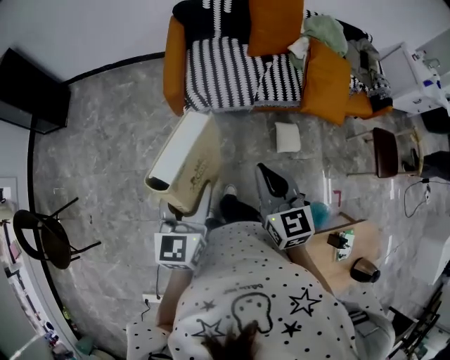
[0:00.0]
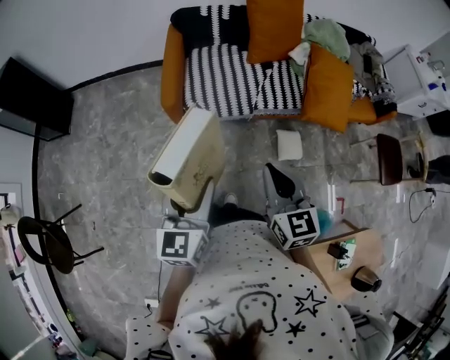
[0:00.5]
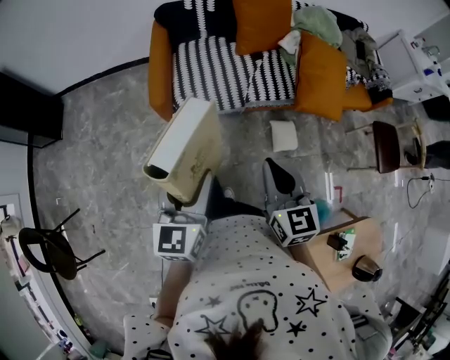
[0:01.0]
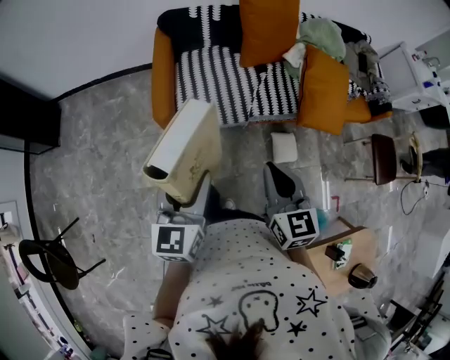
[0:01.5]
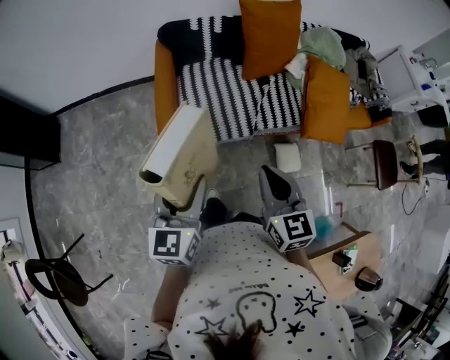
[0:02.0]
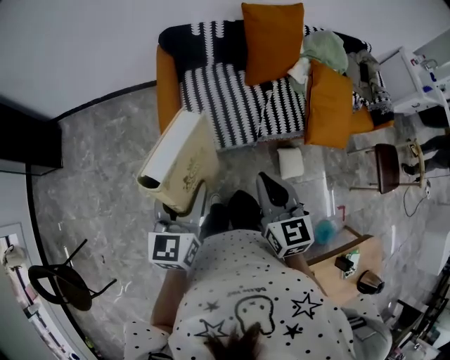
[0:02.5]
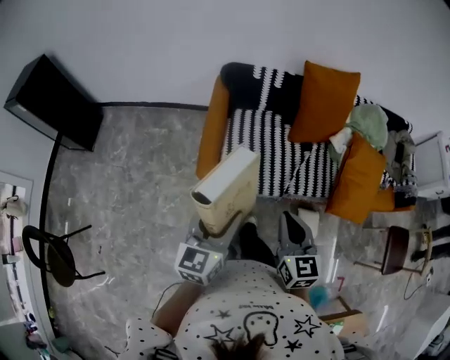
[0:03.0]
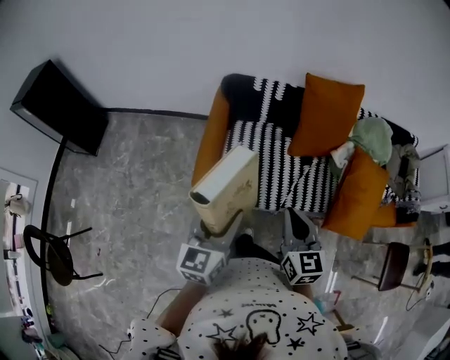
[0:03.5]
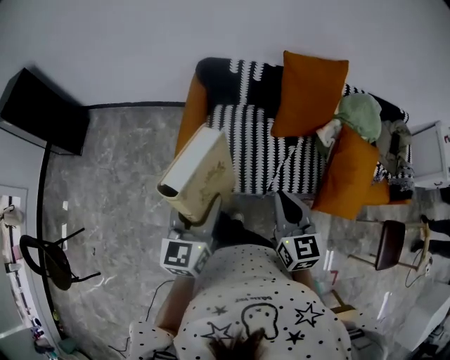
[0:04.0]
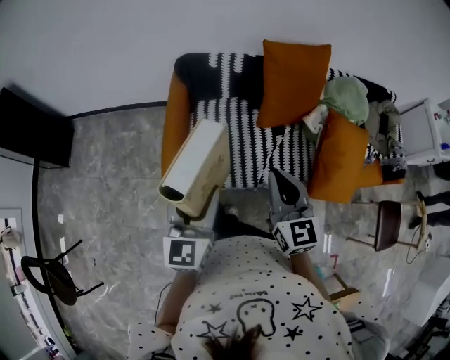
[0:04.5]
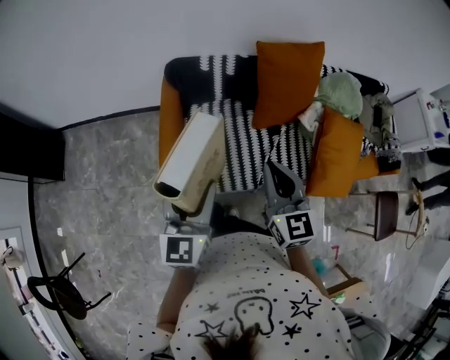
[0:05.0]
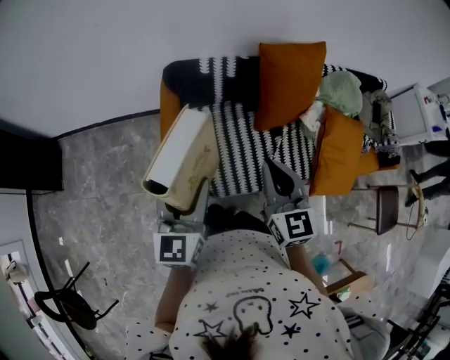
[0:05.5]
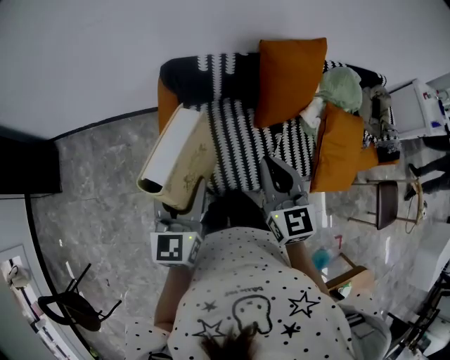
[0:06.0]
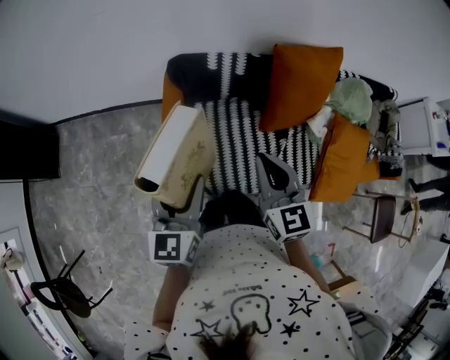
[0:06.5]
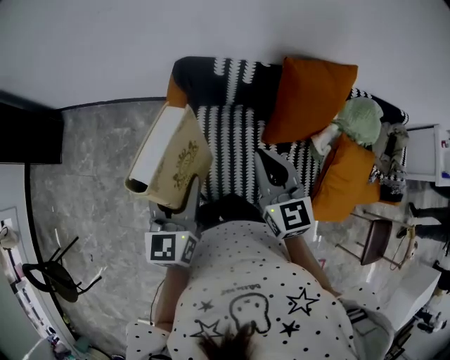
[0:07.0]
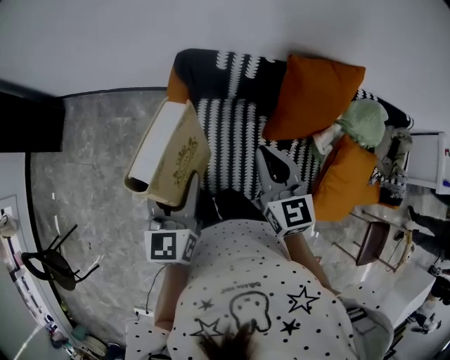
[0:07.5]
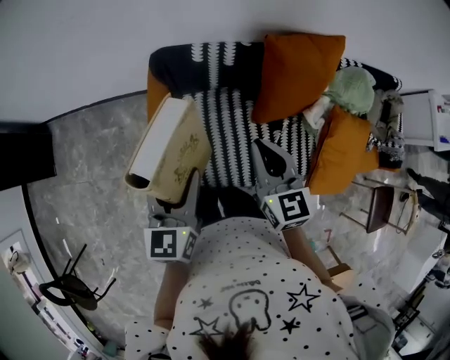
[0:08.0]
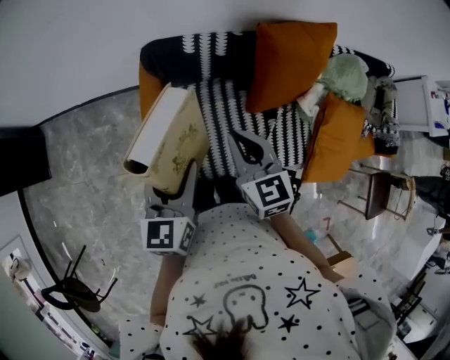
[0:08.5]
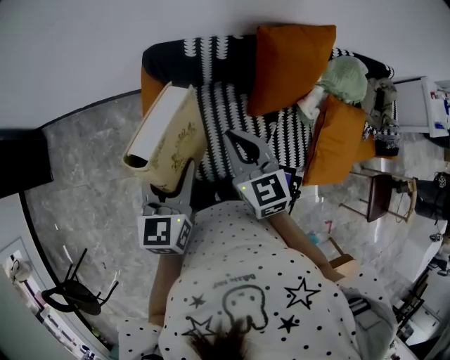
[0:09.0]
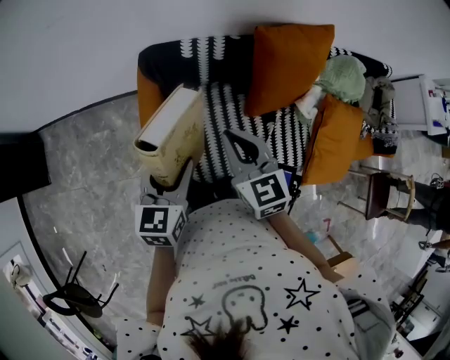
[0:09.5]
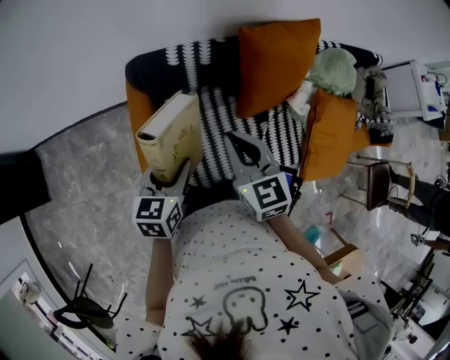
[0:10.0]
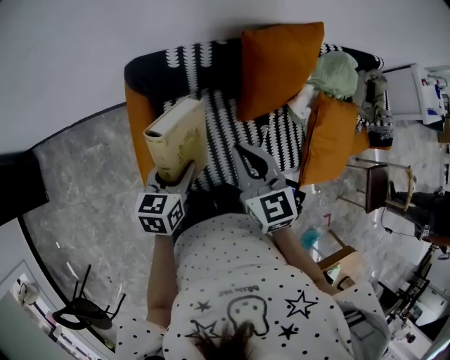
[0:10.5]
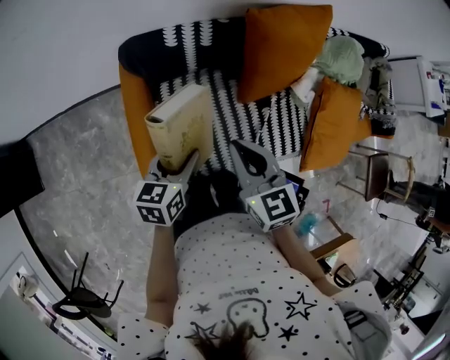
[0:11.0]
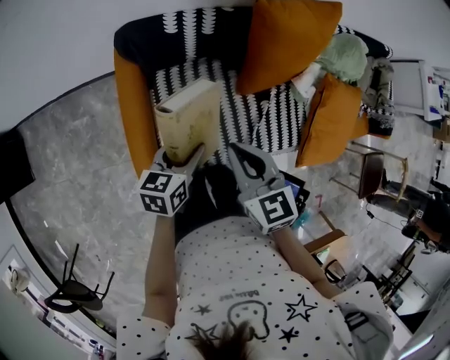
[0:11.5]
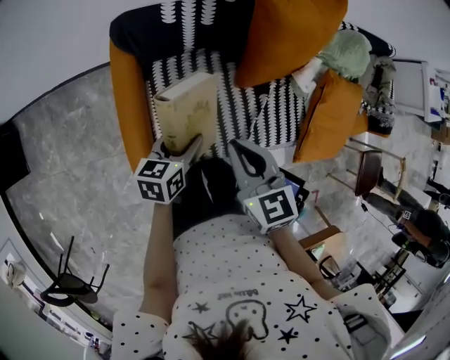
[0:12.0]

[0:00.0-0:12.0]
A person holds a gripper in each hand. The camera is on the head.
0:00.0 to 0:02.0: Both grippers move forward, some 20 cm.
0:02.0 to 0:04.0: The grippers both shift forward by about 15 cm.
0:04.0 to 0:06.0: The grippers both shift forward and to the left by about 15 cm.
0:06.0 to 0:08.0: The grippers both shift forward by roughly 10 cm.
0:08.0 to 0:10.0: The left gripper is displaced downward by about 10 cm, and rotates some 20 degrees.
0:10.0 to 0:12.0: The right gripper is displaced downward and backward by about 10 cm, while the left gripper travels downward by some 10 cm.

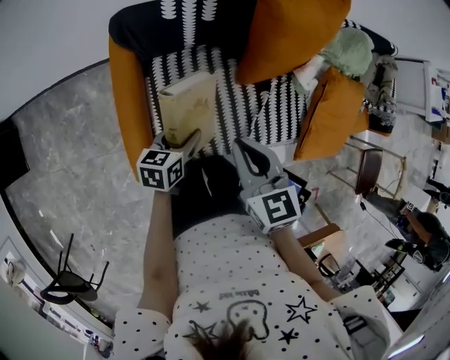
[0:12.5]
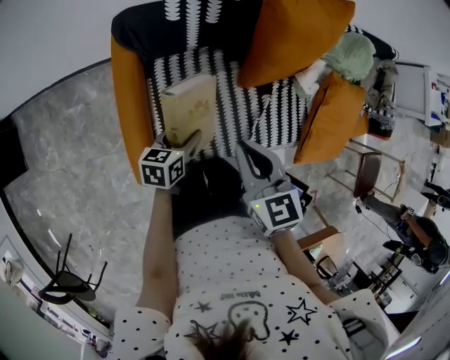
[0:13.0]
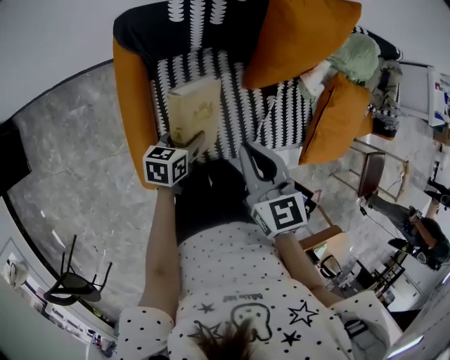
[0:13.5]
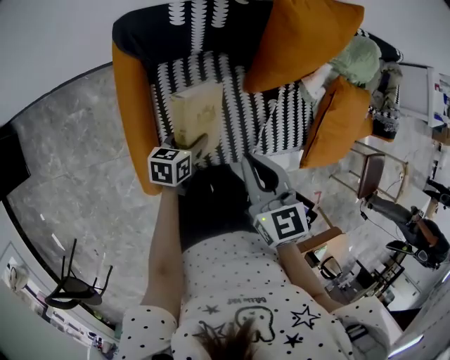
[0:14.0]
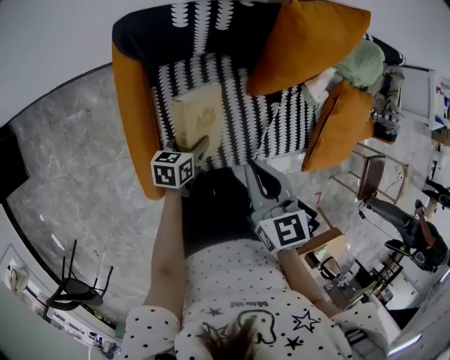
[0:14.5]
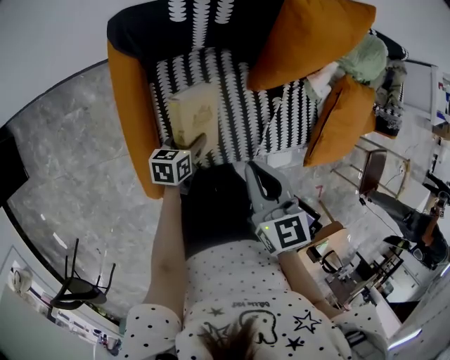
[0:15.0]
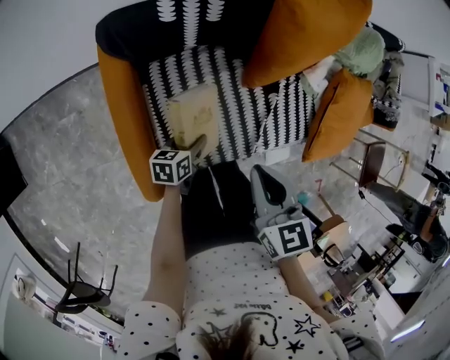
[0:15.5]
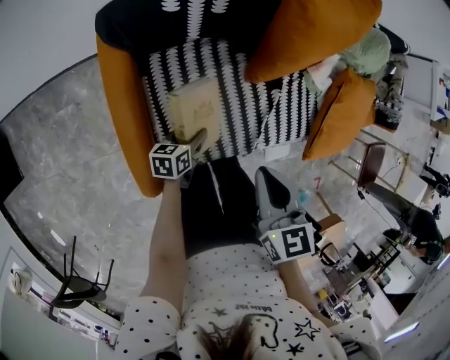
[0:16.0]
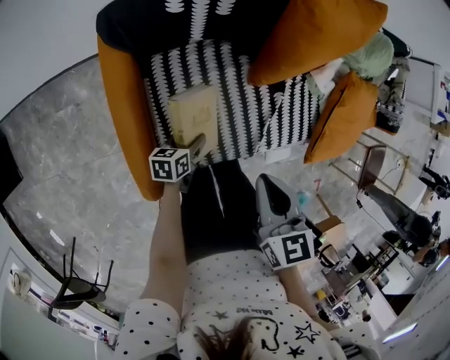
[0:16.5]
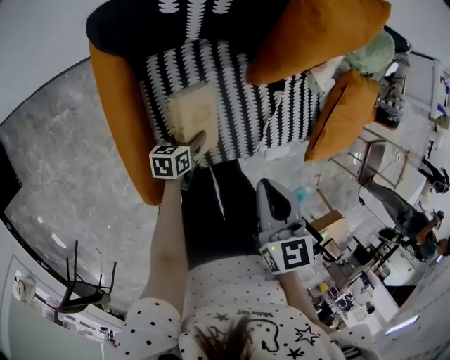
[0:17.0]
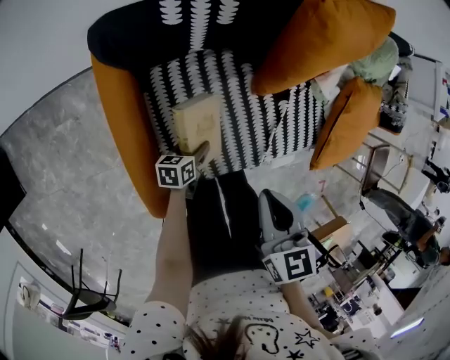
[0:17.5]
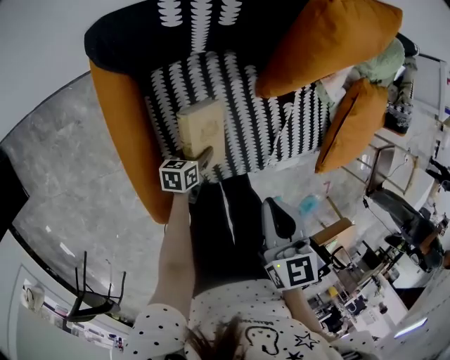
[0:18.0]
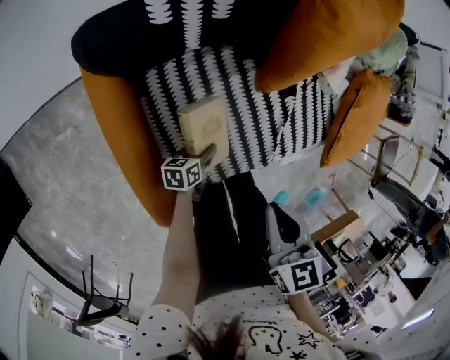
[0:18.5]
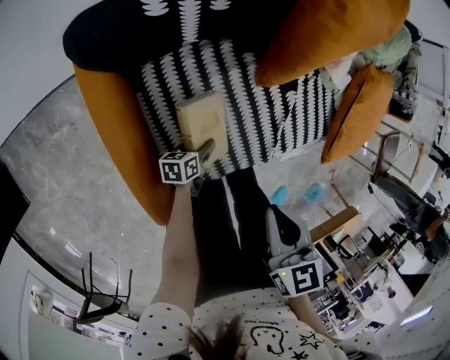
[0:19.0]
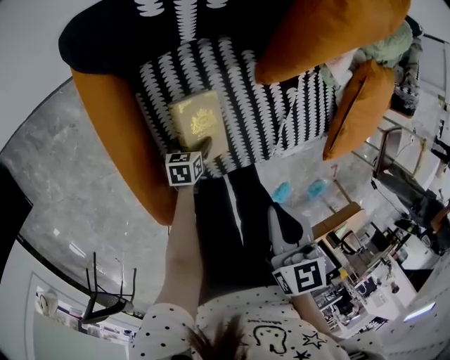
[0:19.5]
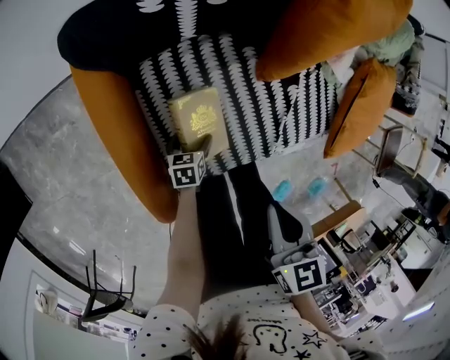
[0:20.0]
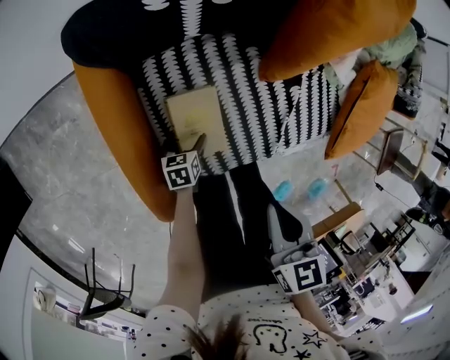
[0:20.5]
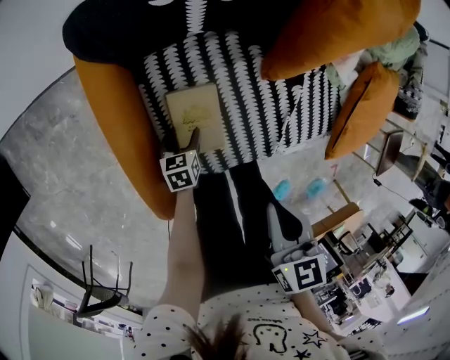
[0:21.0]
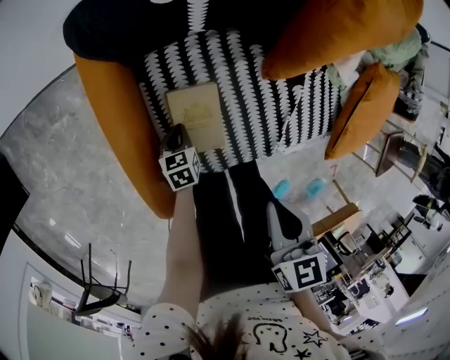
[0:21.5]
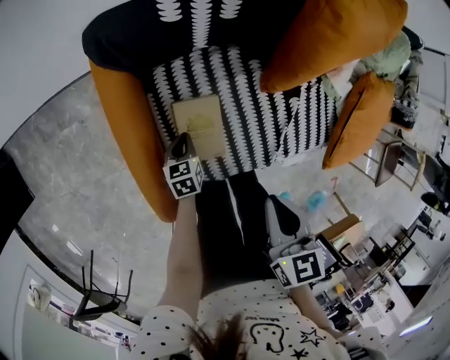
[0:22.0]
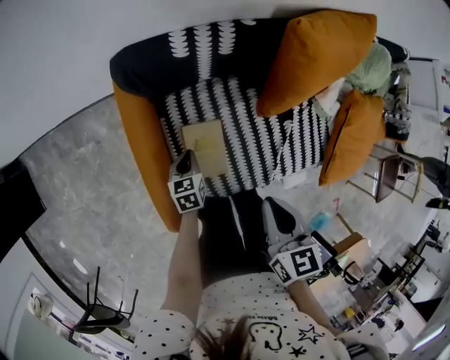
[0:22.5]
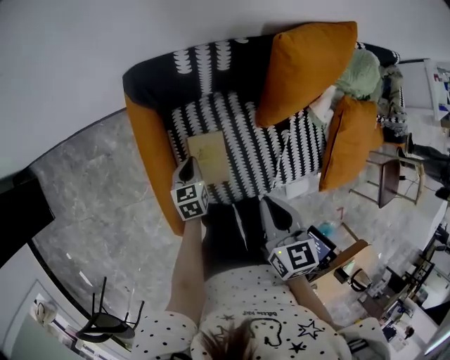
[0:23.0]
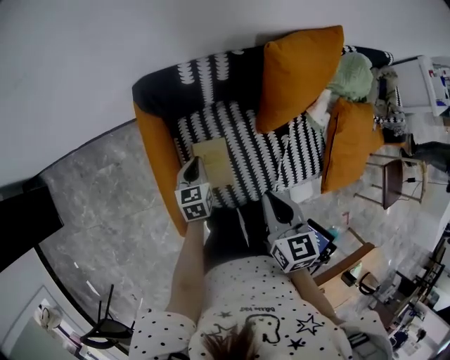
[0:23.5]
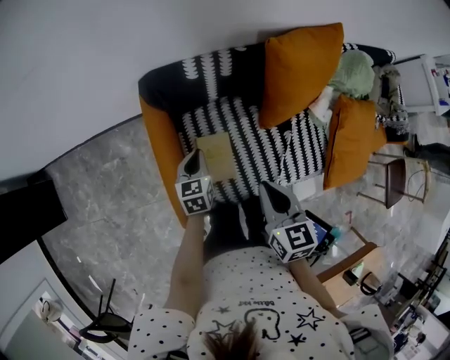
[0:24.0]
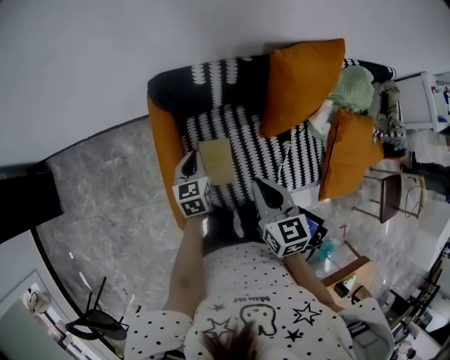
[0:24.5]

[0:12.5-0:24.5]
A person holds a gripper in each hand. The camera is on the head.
0:12.5 to 0:14.5: The left gripper heads downward, covering roughly 10 cm.
0:14.5 to 0:16.5: The left gripper goes about 10 cm downward.
0:16.5 to 0:18.5: The left gripper shifts approximately 10 cm downward.
0:18.5 to 0:20.5: The left gripper travels to the left by roughly 5 cm, swivels some 20 degrees, and opens up.
0:20.5 to 0:22.5: The left gripper shifts some 15 cm upward and forward, and closes its fingers; the right gripper moves about 5 cm.
0:22.5 to 0:24.5: The right gripper shifts approximately 5 cm upward, while the left gripper is displaced upward by some 20 cm.

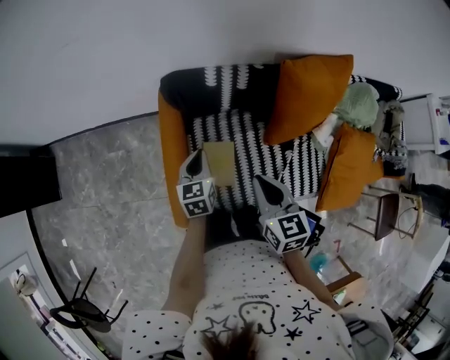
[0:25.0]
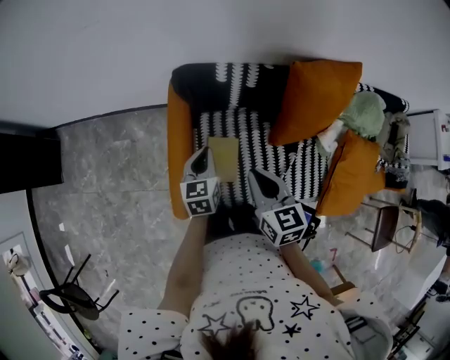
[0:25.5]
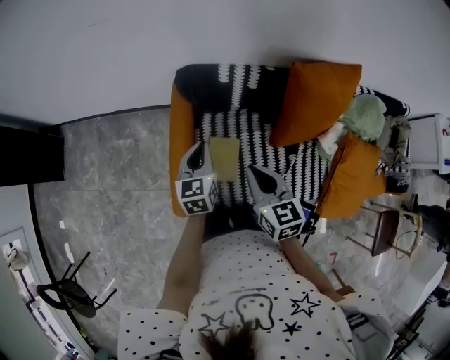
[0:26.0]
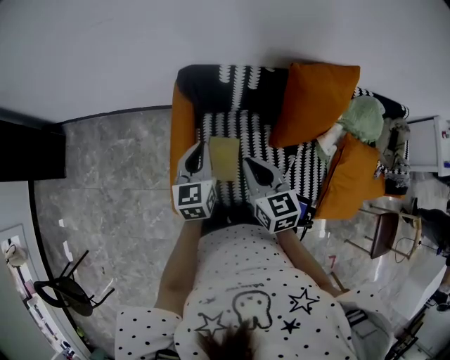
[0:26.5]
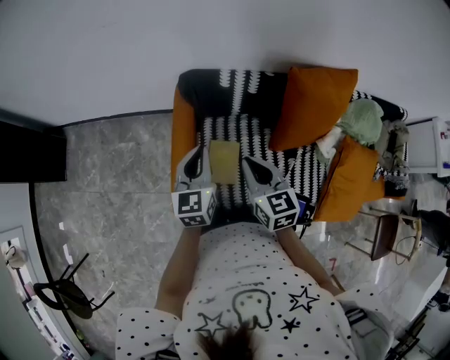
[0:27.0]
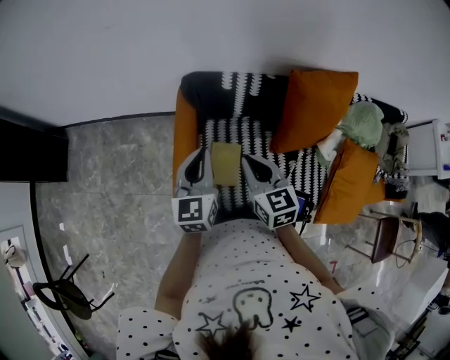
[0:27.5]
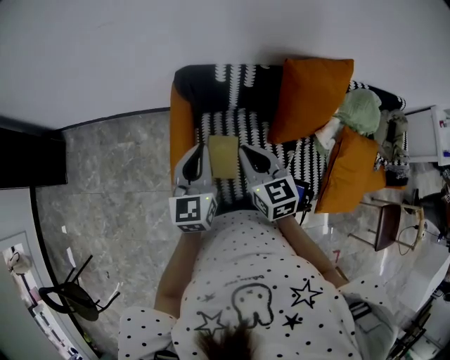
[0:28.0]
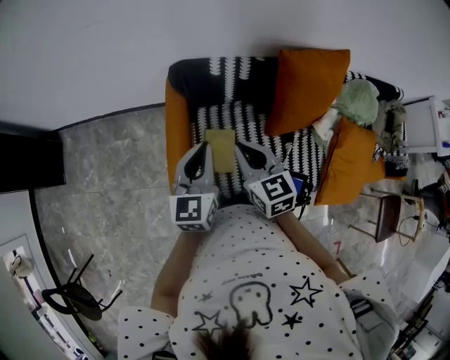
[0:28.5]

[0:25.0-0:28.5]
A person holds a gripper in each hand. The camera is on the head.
0:25.0 to 0:27.0: The left gripper goes roughly 15 cm upward.
0:27.0 to 0:28.5: The left gripper moves approximately 5 cm.
